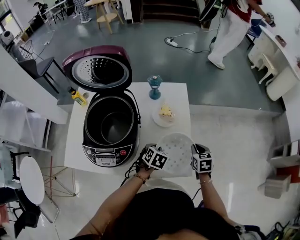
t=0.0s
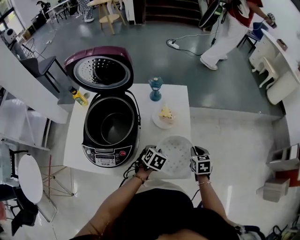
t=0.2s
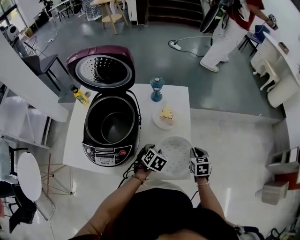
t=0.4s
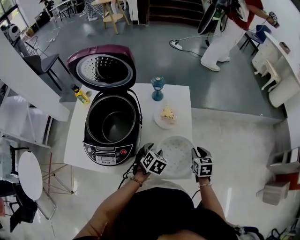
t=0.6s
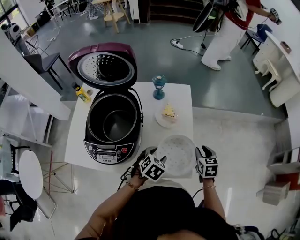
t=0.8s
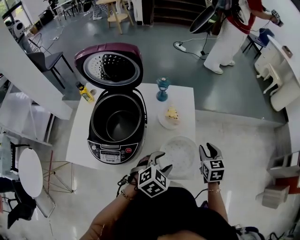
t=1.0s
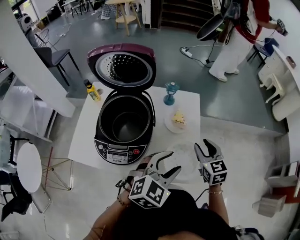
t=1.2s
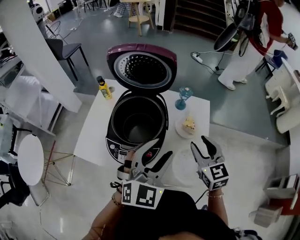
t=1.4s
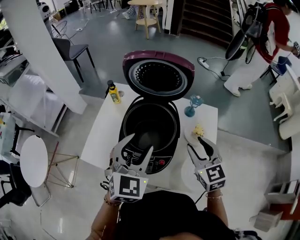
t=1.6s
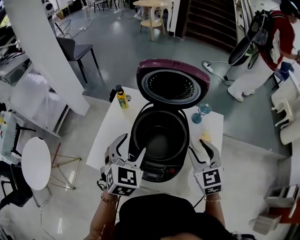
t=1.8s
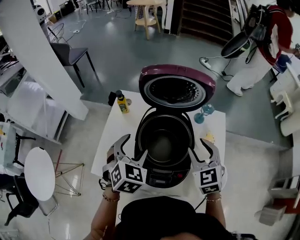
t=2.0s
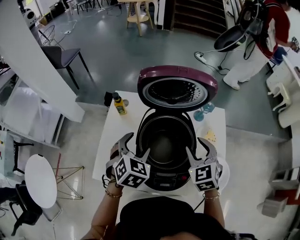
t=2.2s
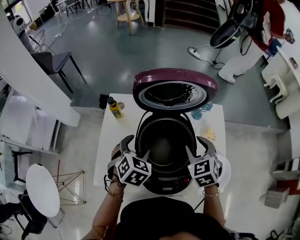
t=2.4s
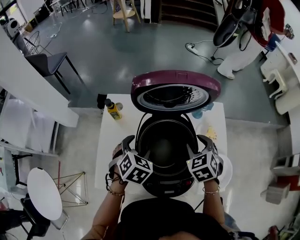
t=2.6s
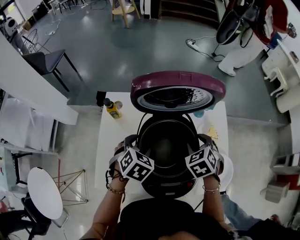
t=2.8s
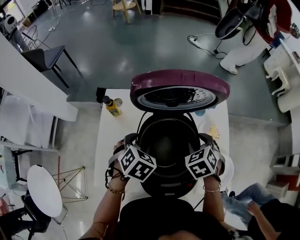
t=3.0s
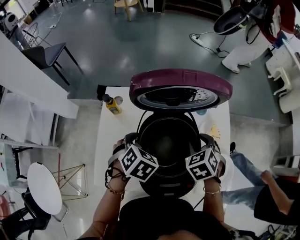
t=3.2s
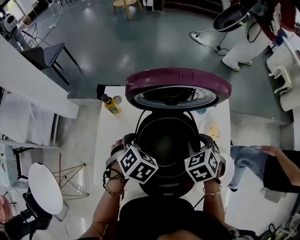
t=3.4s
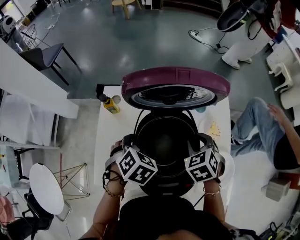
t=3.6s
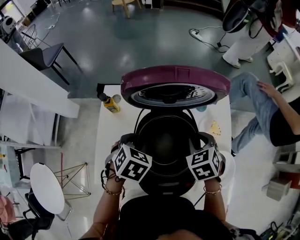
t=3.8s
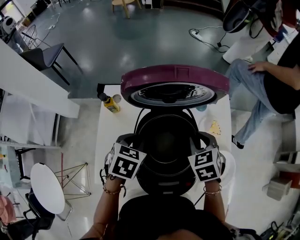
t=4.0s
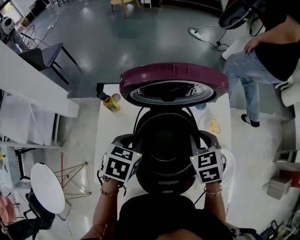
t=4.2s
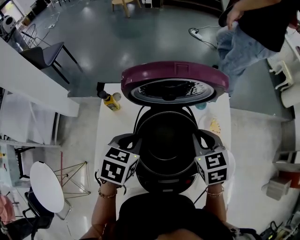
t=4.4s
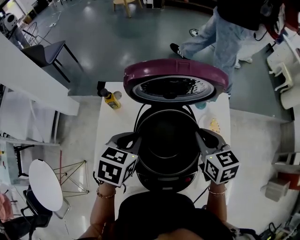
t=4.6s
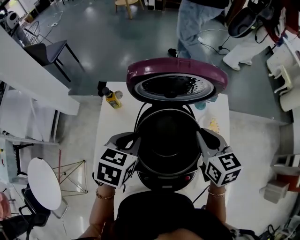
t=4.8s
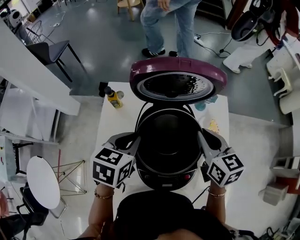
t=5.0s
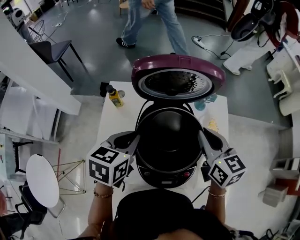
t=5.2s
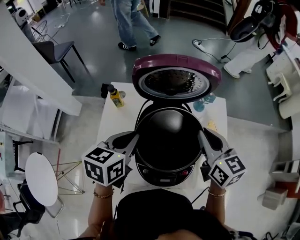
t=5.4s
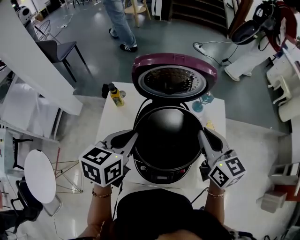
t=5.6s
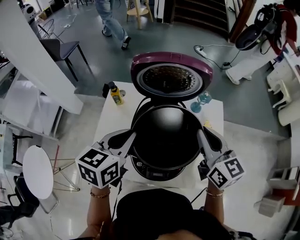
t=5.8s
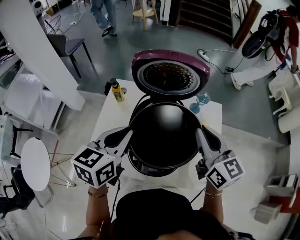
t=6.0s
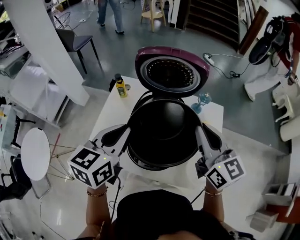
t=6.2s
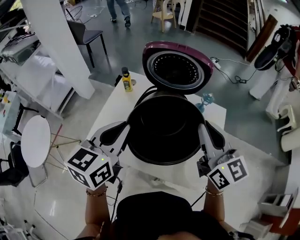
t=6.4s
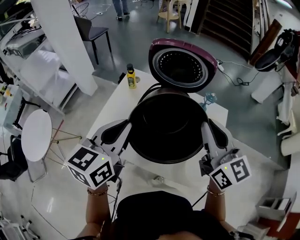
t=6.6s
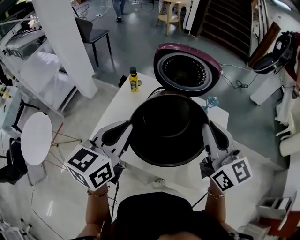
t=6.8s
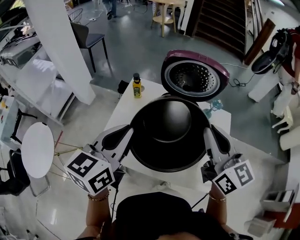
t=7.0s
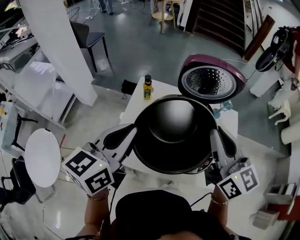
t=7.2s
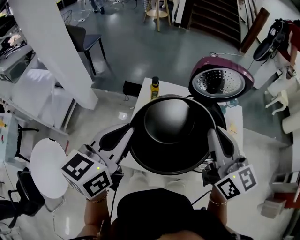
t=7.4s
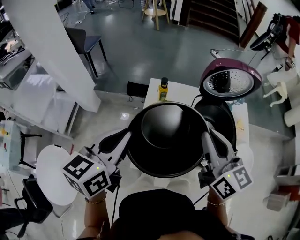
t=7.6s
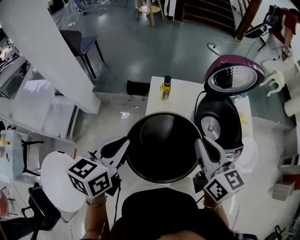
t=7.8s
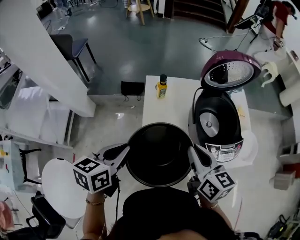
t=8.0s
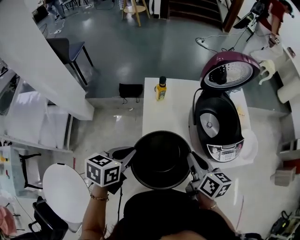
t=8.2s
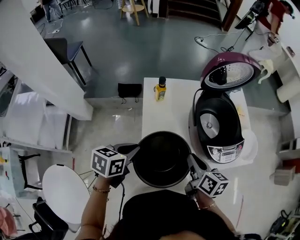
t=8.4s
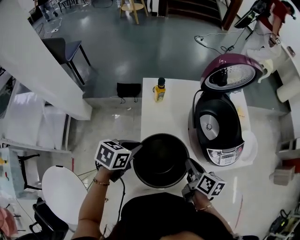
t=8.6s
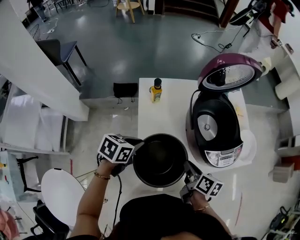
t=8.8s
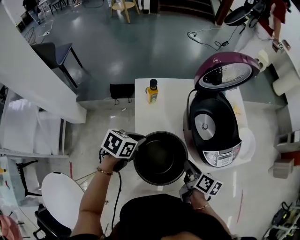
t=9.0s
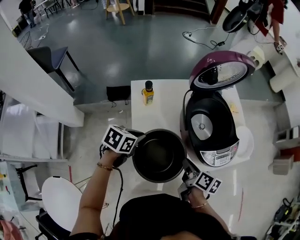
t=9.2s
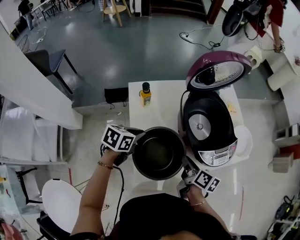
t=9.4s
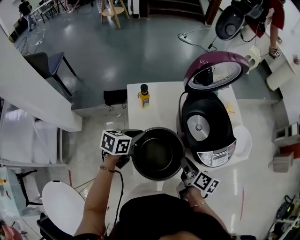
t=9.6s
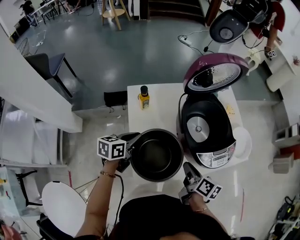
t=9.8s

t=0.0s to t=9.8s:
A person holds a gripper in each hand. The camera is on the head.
t=0.0s to t=1.4s: The left gripper goes roughly 30 cm upward, points its fingers about 50 degrees further upward, and opens its fingers; the right gripper shifts some 30 cm upward and to the left, changes its angle by roughly 40 degrees, and opens its fingers.
t=1.4s to t=2.8s: The left gripper travels to the left, forward and downward by about 35 cm, and points its fingers about 40 degrees further downward, while the right gripper heads to the left, forward and downward, covering roughly 20 cm, and tips its fingers downward by roughly 40 degrees.
t=2.8s to t=4.2s: The left gripper changes its angle by about 20 degrees, and closes its fingers.
t=4.2s to t=5.6s: Both grippers move upward and backward, some 15 cm. The left gripper swivels approximately 30 degrees, while the right gripper tilts its fingers approximately 30 degrees upward.
t=5.6s to t=7.0s: The left gripper moves backward, upward and to the left, roughly 15 cm, and rotates approximately 20 degrees. Meanwhile the right gripper heads upward, backward and to the left, covering some 15 cm.
t=7.0s to t=8.4s: The left gripper moves approximately 30 cm, and changes its angle by some 50 degrees, while the right gripper shifts by some 35 cm, and changes its angle by some 50 degrees.
t=8.4s to t=9.8s: The right gripper travels downward by roughly 5 cm, and swivels some 20 degrees; the left gripper is displaced forward by about 15 cm.

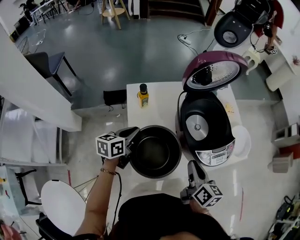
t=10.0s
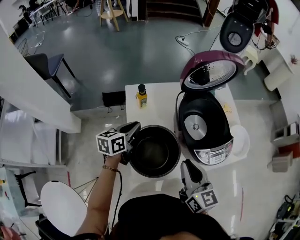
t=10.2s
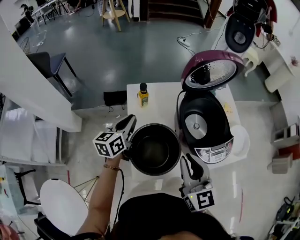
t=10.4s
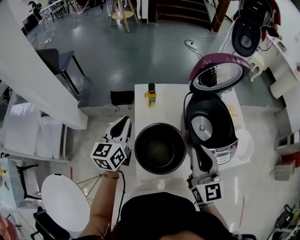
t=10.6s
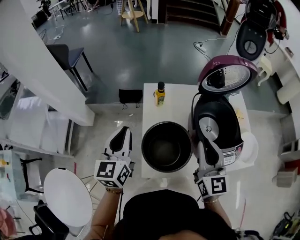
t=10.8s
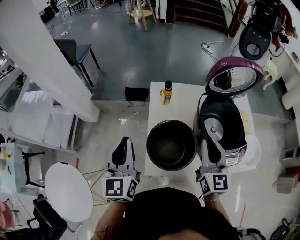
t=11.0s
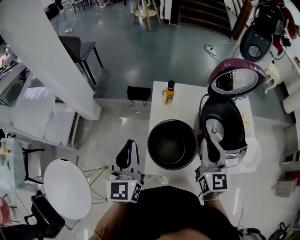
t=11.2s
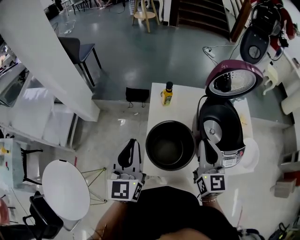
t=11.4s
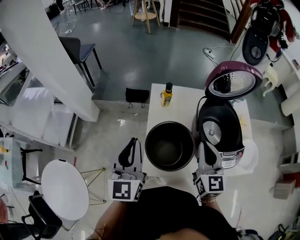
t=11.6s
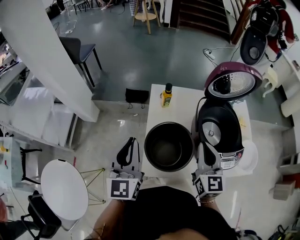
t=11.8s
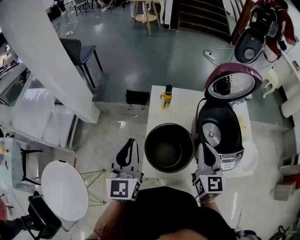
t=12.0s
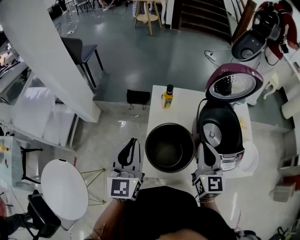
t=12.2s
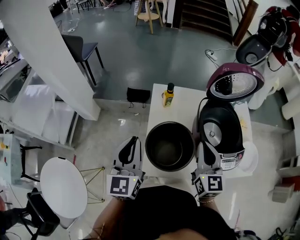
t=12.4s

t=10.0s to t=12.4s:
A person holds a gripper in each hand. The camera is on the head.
t=10.0s to t=11.2s: The right gripper heads upward, covering some 10 cm, and rotates around the line of its fingers by roughly 40 degrees, counterclockwise from behind. Meanwhile the left gripper changes place by roughly 25 cm, and swivels approximately 60 degrees.
t=11.2s to t=12.4s: The grippers move only a little.

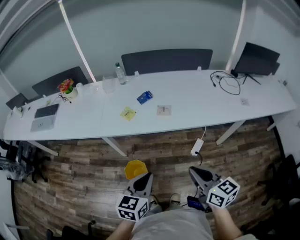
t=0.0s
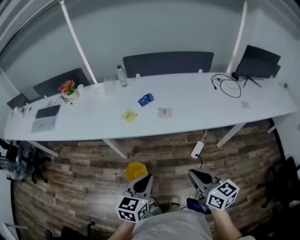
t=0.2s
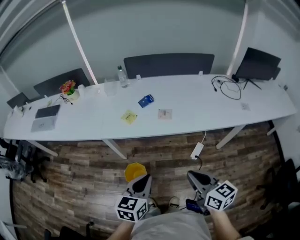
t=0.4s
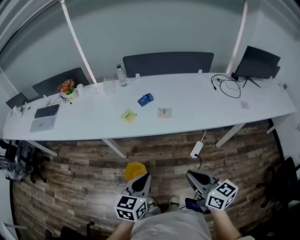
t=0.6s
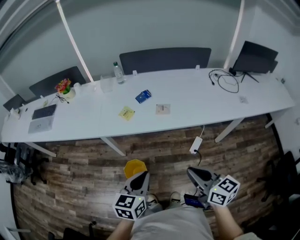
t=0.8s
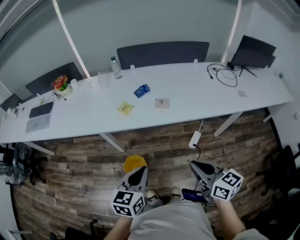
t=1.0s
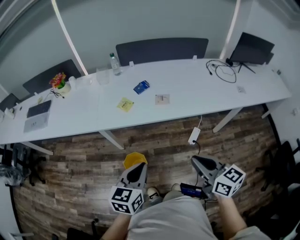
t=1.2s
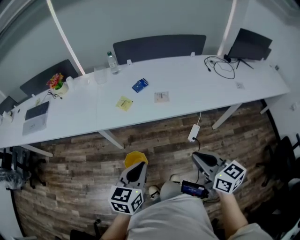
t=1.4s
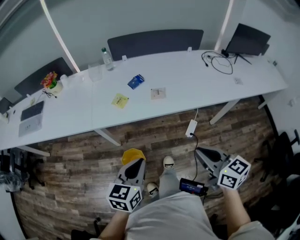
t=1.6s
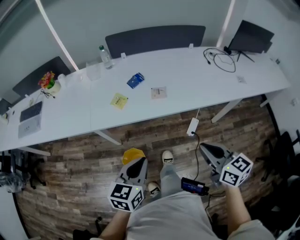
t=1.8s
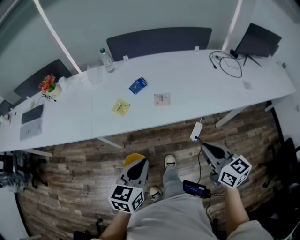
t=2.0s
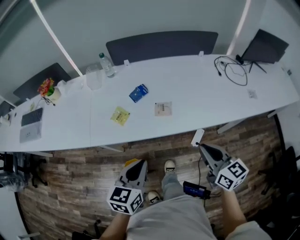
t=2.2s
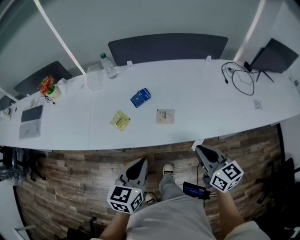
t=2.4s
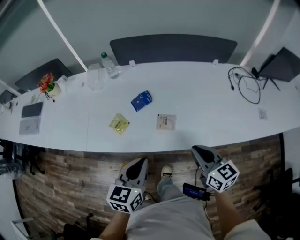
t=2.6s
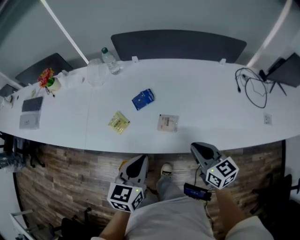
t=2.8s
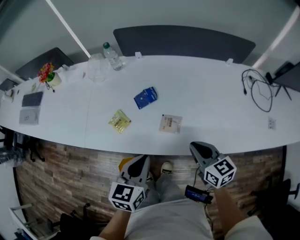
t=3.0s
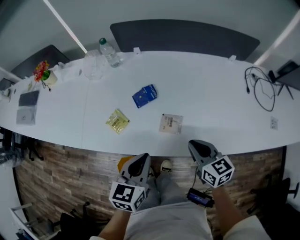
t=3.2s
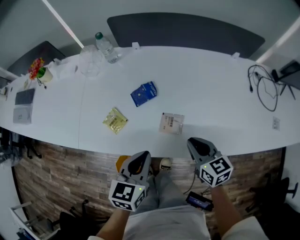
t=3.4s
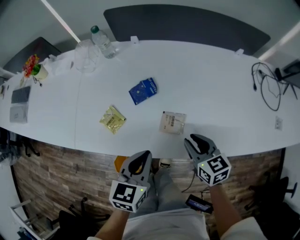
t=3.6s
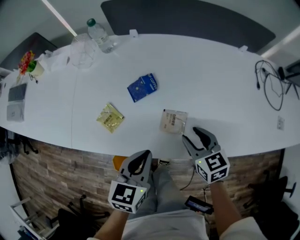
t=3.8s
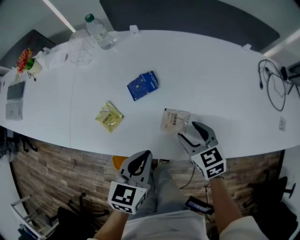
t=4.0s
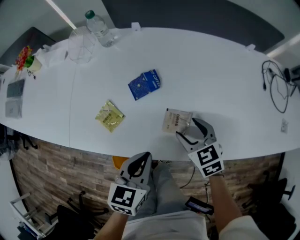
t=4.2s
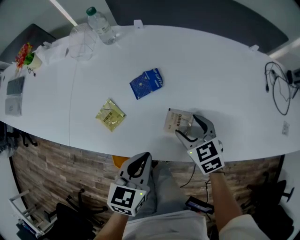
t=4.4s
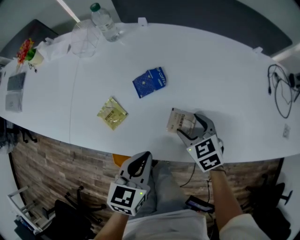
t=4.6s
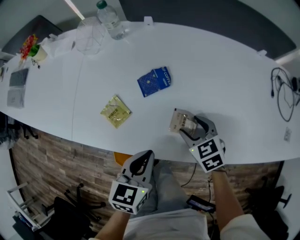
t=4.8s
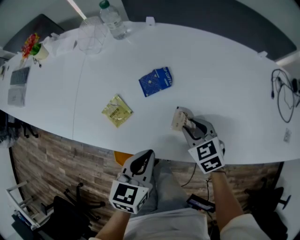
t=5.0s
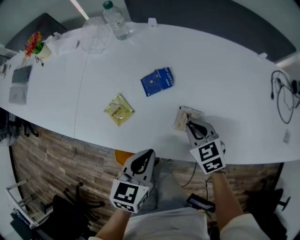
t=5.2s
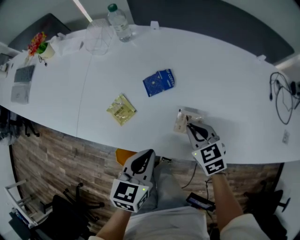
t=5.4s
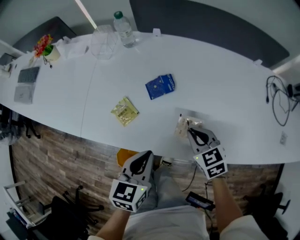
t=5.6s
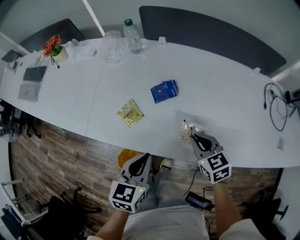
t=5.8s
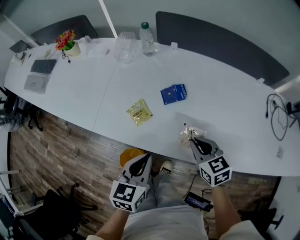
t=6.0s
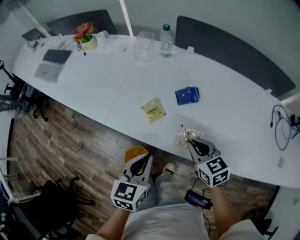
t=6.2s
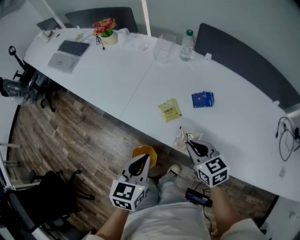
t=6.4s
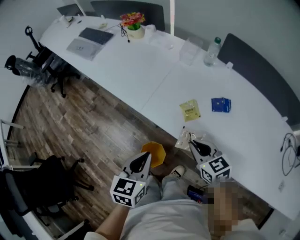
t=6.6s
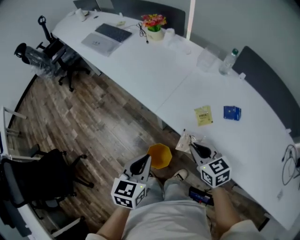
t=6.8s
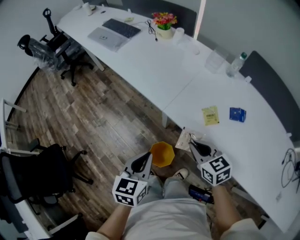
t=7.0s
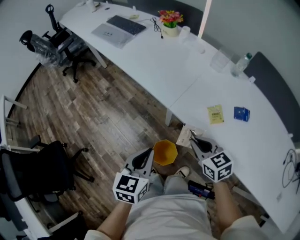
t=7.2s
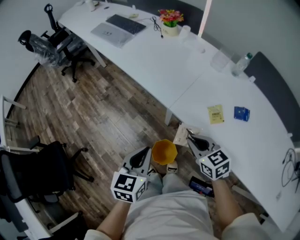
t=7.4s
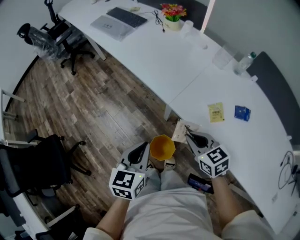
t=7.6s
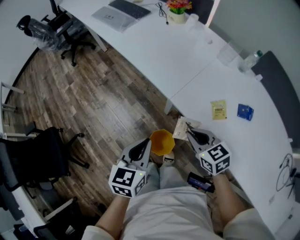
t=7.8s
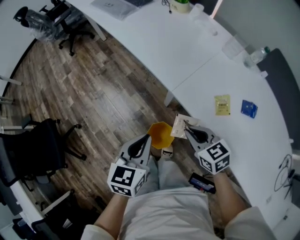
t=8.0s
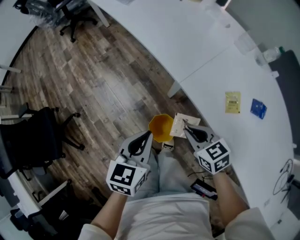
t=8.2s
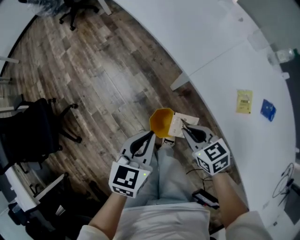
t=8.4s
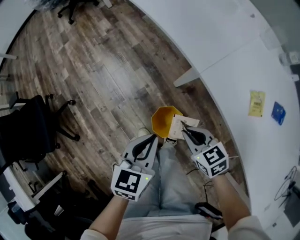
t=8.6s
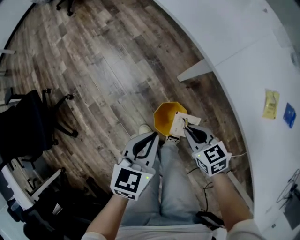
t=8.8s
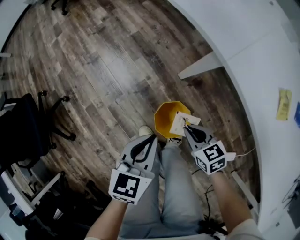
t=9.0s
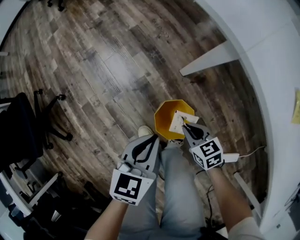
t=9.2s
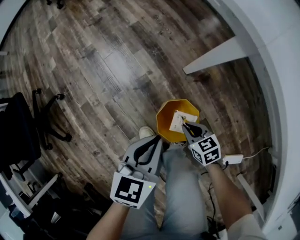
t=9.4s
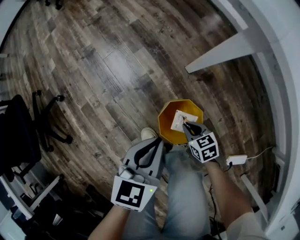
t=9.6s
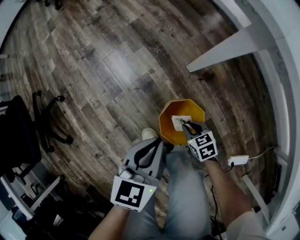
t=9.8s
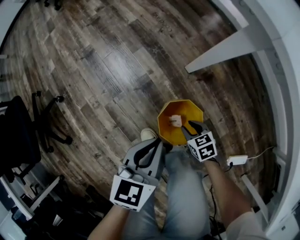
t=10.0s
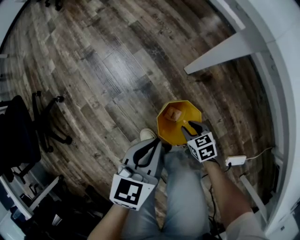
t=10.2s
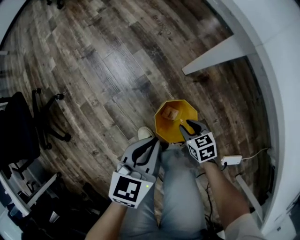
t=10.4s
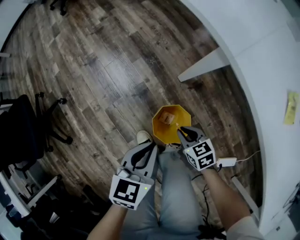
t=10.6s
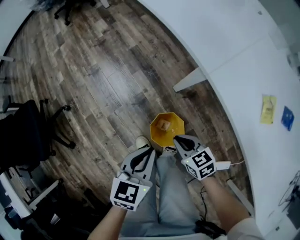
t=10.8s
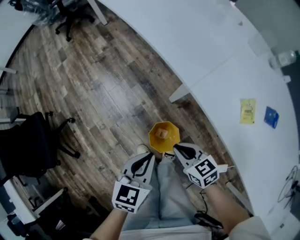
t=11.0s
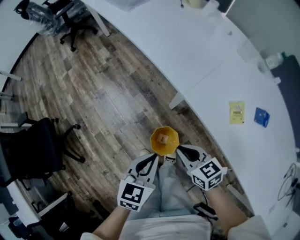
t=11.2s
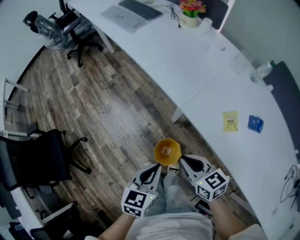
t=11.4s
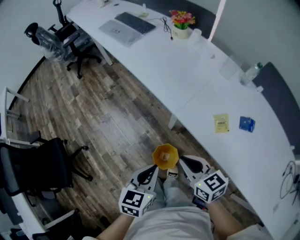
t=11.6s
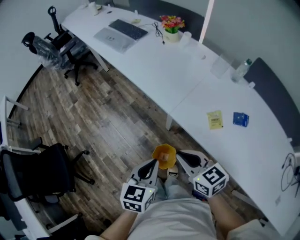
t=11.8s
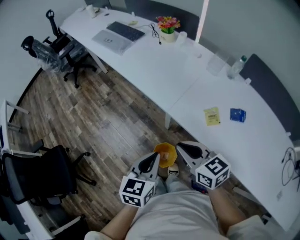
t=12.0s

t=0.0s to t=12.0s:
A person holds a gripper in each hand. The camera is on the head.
t=0.0s to t=1.6s: The left gripper shifts roughly 5 cm to the left.
t=1.6s to t=3.0s: The two grippers go roughly 30 cm forward.
t=3.0s to t=4.4s: The right gripper travels downward and forward by about 15 cm, rotates approximately 30 degrees, and opens; the left gripper heads downward, covering roughly 10 cm.
t=4.4s to t=6.0s: The right gripper is displaced upward by about 10 cm, and closes up. The left gripper moves to the left and upward, some 10 cm.
t=6.0s to t=7.6s: The right gripper changes place by approximately 35 cm, and turns by approximately 30 degrees, while the left gripper ends up approximately 30 cm from where it was, and changes its angle by approximately 30 degrees.
t=7.6s to t=9.0s: Both grippers travel together downward, approximately 30 cm.
t=9.0s to t=10.4s: The right gripper goes about 20 cm downward, and opens its fingers. The left gripper heads downward, covering some 10 cm.
t=10.4s to t=12.0s: The right gripper travels upward by roughly 60 cm, points its fingers some 30 degrees further upward, and closes its fingers, while the left gripper is displaced upward by roughly 40 cm.
